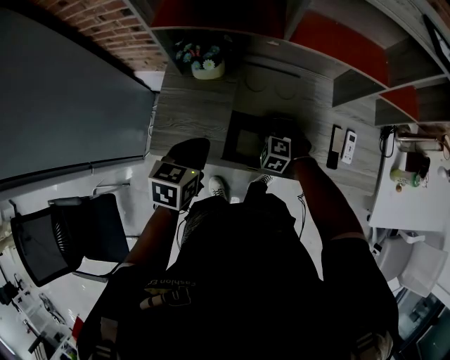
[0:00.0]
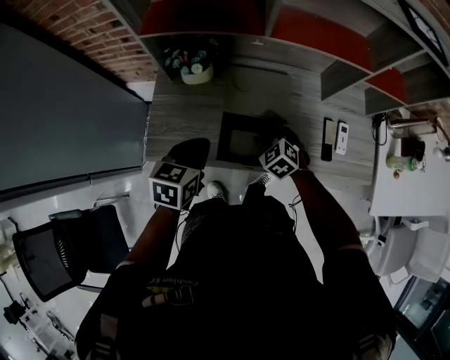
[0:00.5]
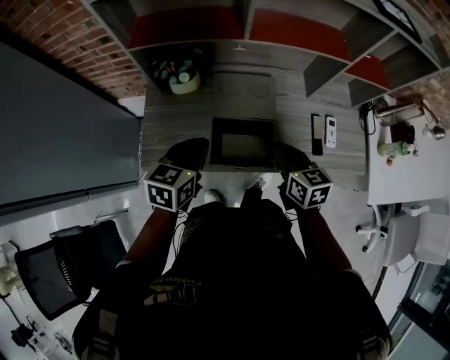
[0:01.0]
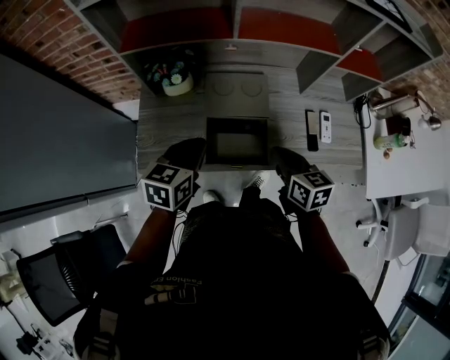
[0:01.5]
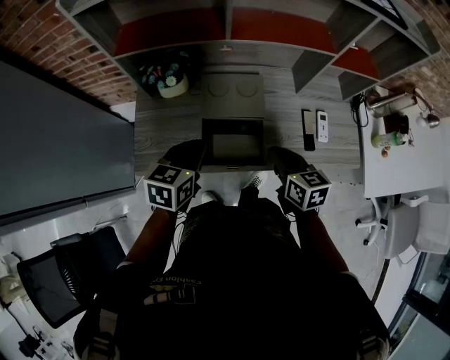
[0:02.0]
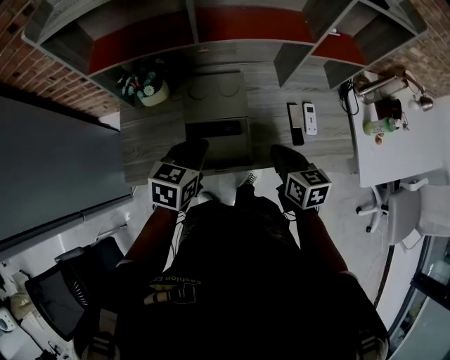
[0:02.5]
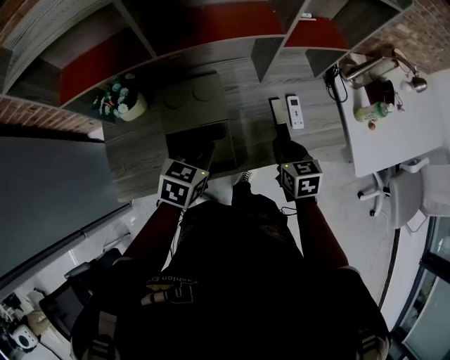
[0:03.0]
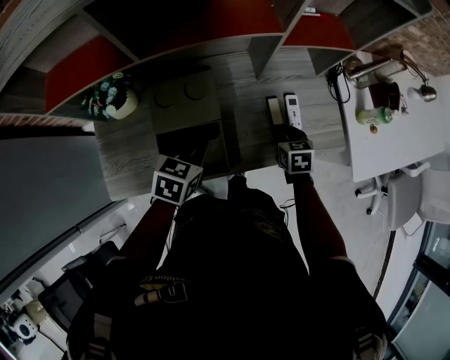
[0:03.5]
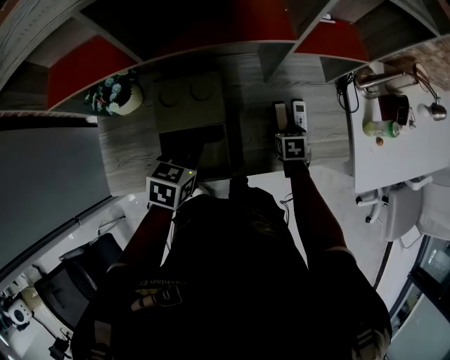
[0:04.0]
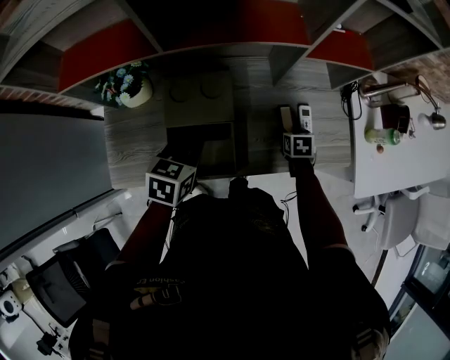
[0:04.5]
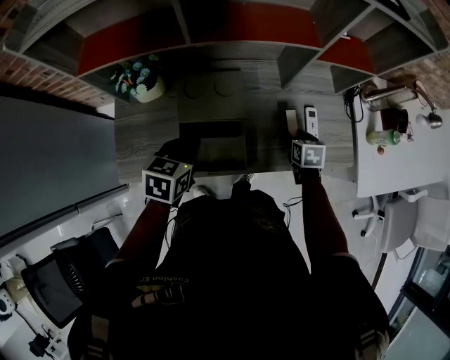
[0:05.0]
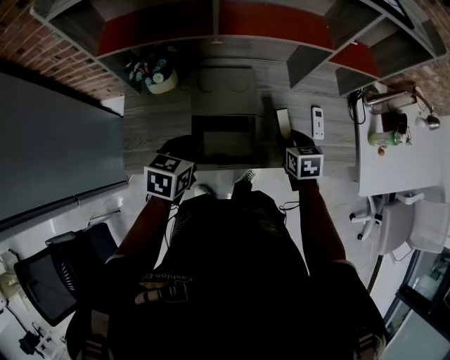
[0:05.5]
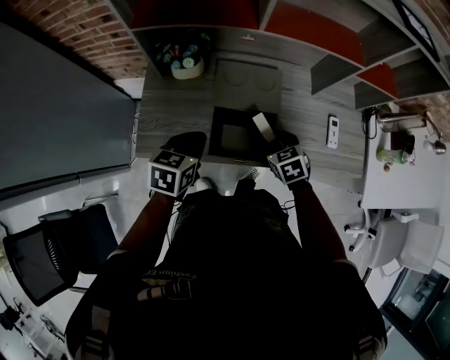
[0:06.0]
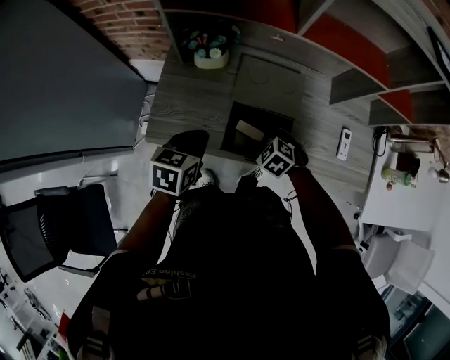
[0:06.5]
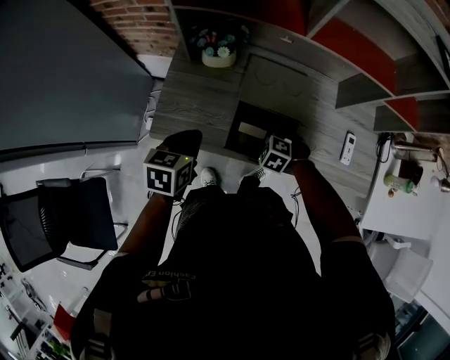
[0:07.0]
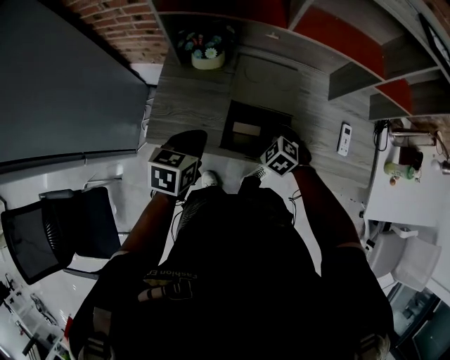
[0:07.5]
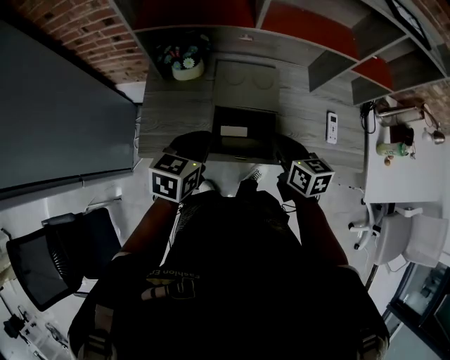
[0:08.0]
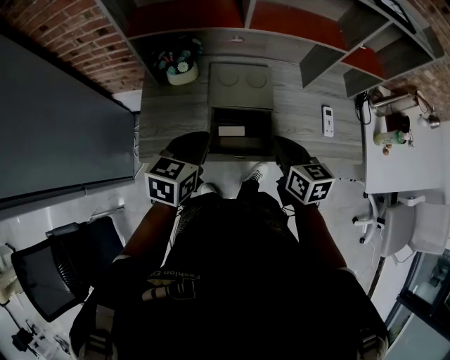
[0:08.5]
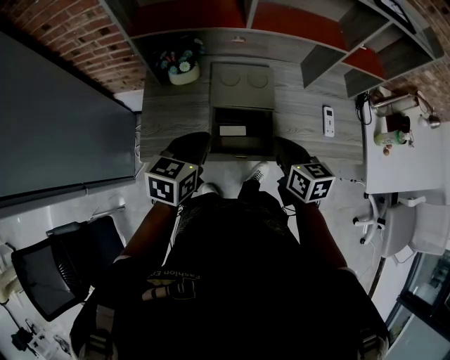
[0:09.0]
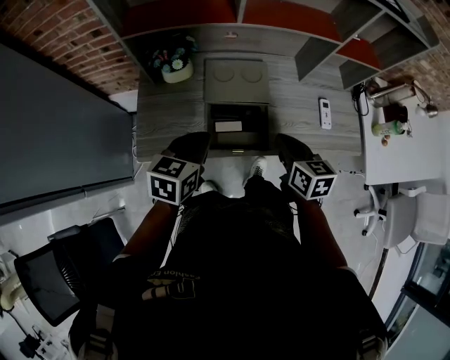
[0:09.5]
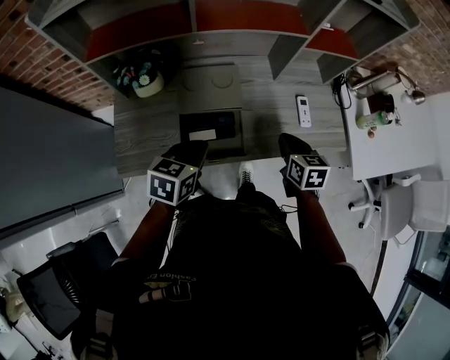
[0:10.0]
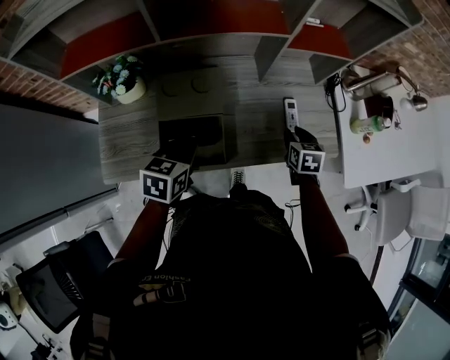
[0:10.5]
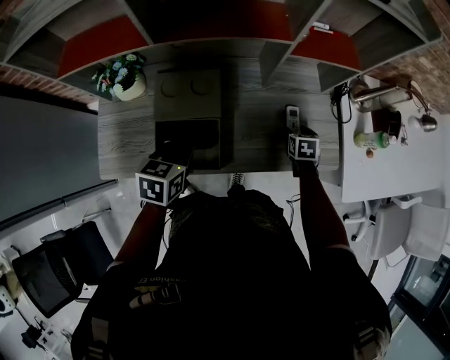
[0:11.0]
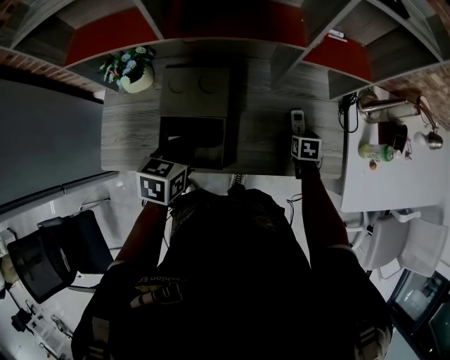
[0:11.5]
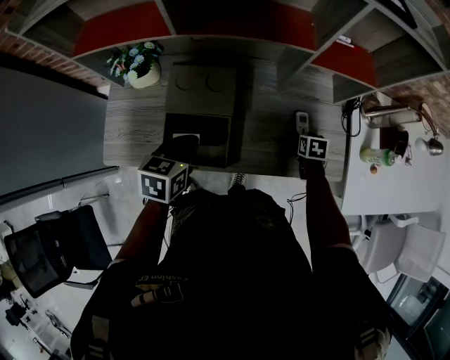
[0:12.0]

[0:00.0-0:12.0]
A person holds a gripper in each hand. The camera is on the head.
0:00.0 to 0:02.0: The left gripper goes some 5 cm to the right, while the right gripper goes about 25 cm upward, to the right and backward, twists about 80 degrees clockwise, seen from behind, and closes its fingers.
0:02.0 to 0:04.0: The right gripper shifts approximately 30 cm downward, to the right and forward, turns by roughly 30 degrees, and opens its fingers; the left gripper goes roughly 15 cm to the right, forward and downward.
0:04.0 to 0:06.0: The right gripper heads to the left, backward and upward, covering roughly 25 cm, and turns by about 40 degrees. Meanwhile the left gripper shifts roughly 20 cm to the left and backward.
0:06.0 to 0:08.0: The right gripper heads upward, covering about 10 cm, turns by about 40 degrees, and closes its fingers. Meanwhile the left gripper reaches roughly 5 cm to the left, then returns.
0:08.0 to 0:10.0: The right gripper is displaced to the right by approximately 15 cm, and turns by roughly 20 degrees. The left gripper heads to the right, covering about 10 cm.
0:10.0 to 0:12.0: The left gripper goes some 5 cm forward. Meanwhile the right gripper goes about 25 cm downward, forward and to the right, turns by some 20 degrees, and opens.

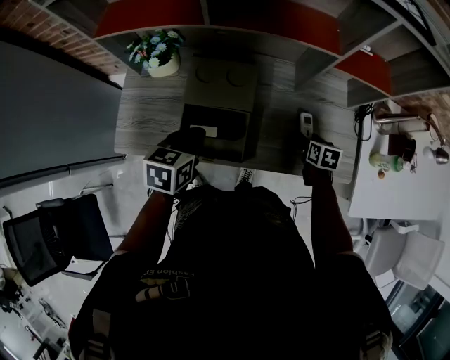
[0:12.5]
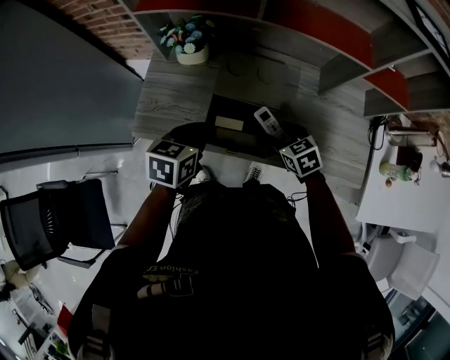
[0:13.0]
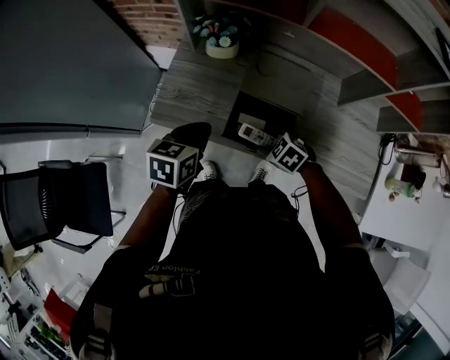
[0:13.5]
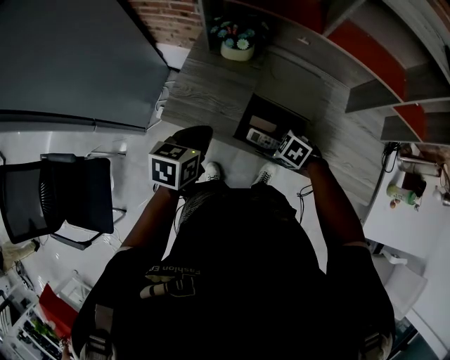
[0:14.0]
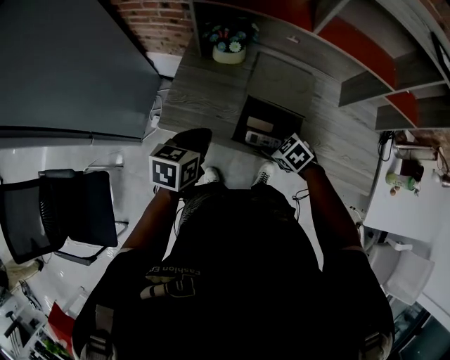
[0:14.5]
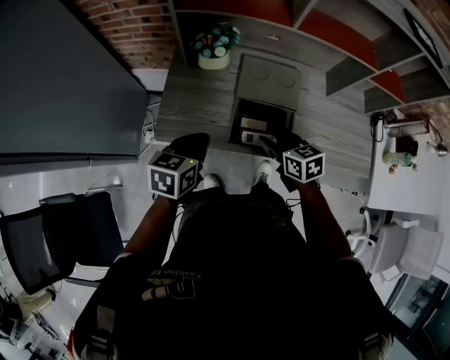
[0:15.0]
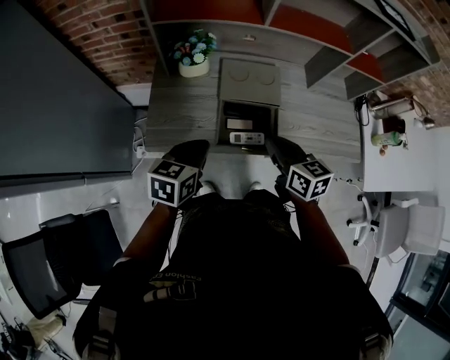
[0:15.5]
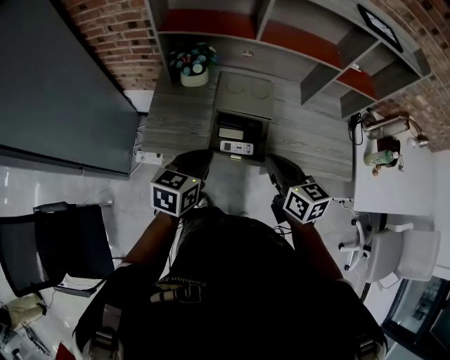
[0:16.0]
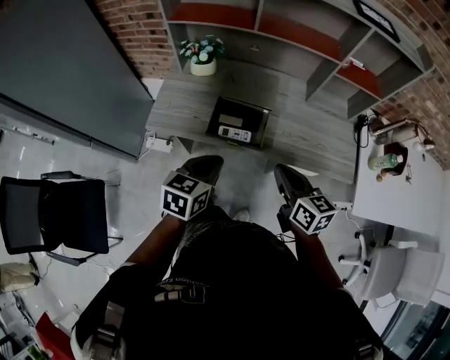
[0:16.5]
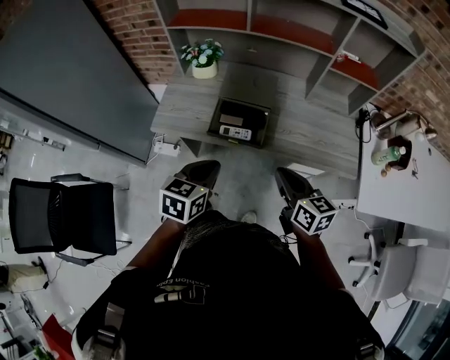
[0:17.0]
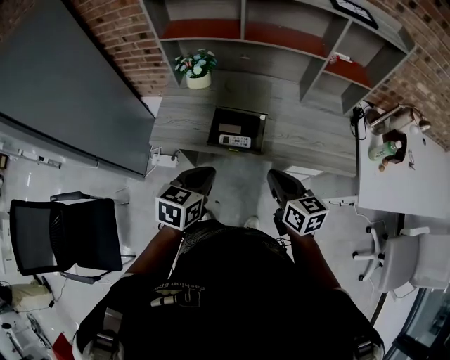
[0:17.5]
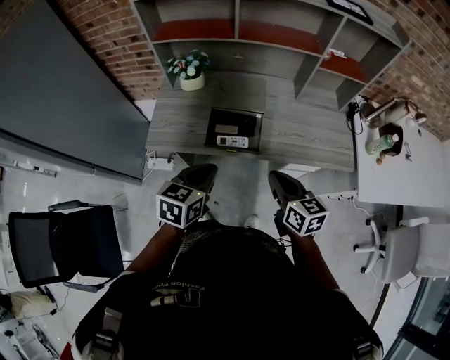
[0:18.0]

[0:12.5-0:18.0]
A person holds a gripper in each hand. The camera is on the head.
0:12.5 to 0:14.5: The left gripper shifts by some 20 cm, while the right gripper moves some 35 cm, and rolls counterclockwise, seen from behind, by about 60 degrees.
0:14.5 to 0:16.0: The left gripper shifts by some 10 cm, while the right gripper goes about 20 cm upward, points its fingers about 40 degrees further upward, and closes up.
0:16.0 to 0:18.0: Both grippers move backward and to the right, roughly 10 cm.

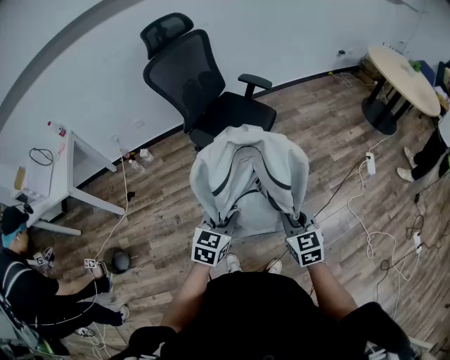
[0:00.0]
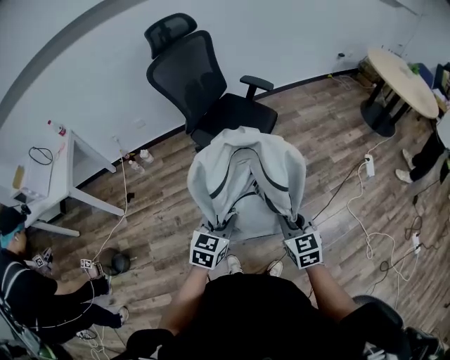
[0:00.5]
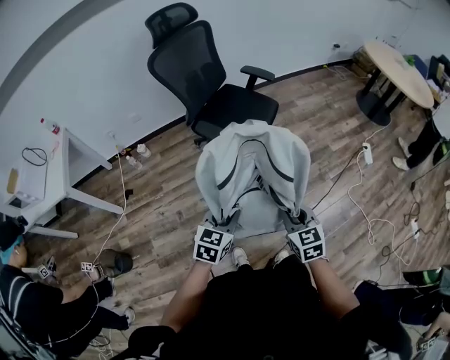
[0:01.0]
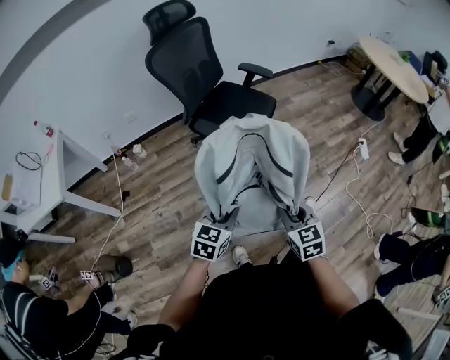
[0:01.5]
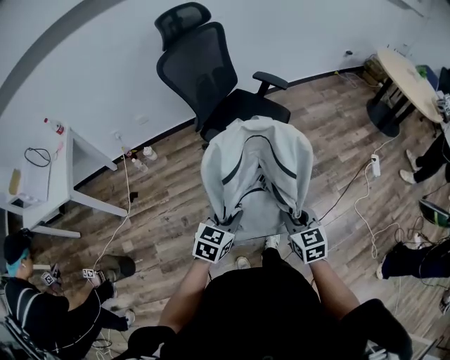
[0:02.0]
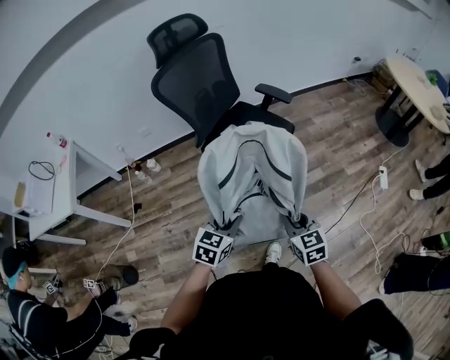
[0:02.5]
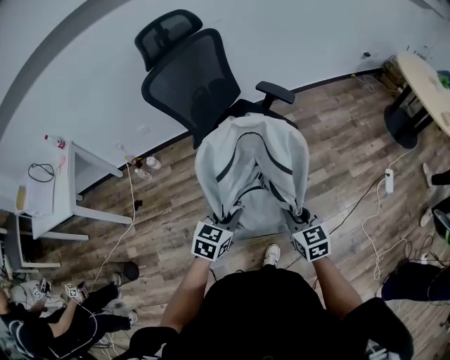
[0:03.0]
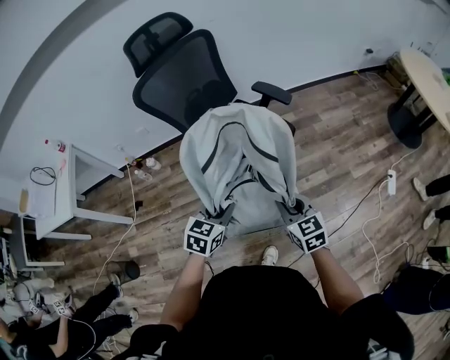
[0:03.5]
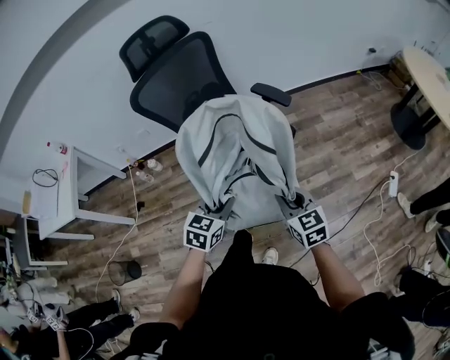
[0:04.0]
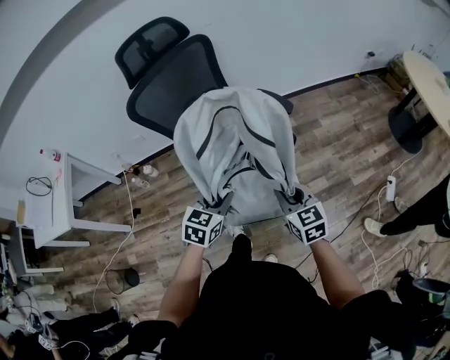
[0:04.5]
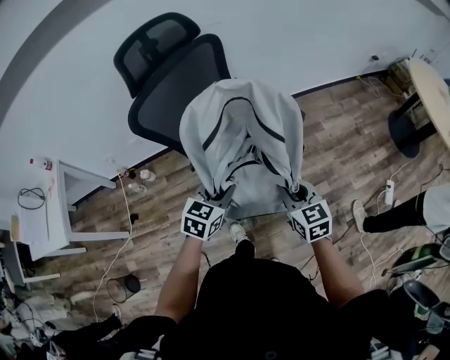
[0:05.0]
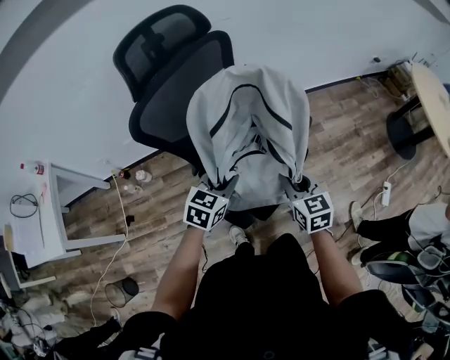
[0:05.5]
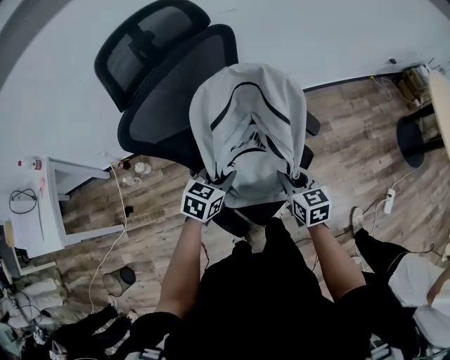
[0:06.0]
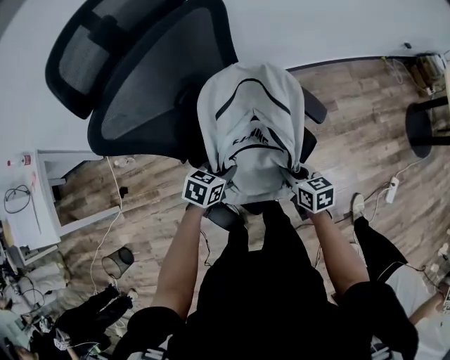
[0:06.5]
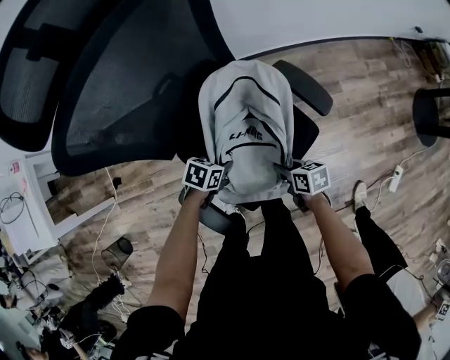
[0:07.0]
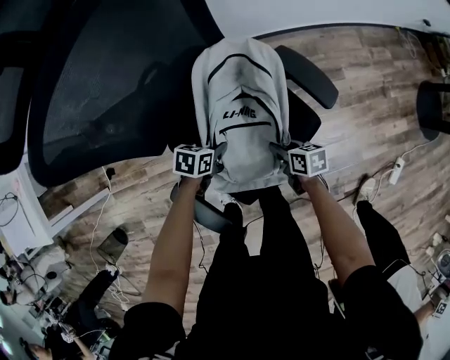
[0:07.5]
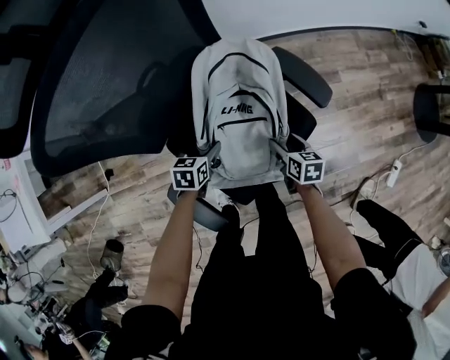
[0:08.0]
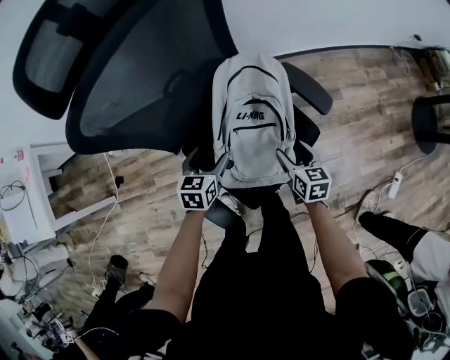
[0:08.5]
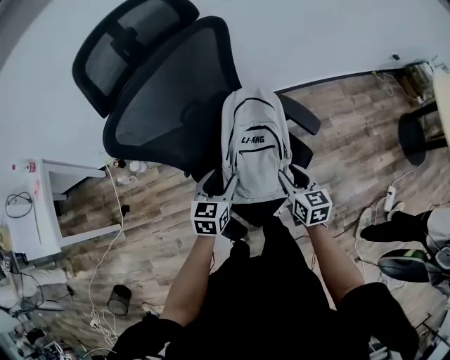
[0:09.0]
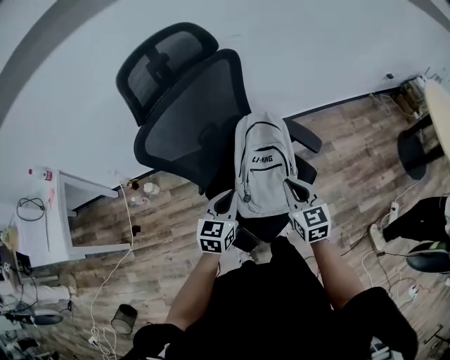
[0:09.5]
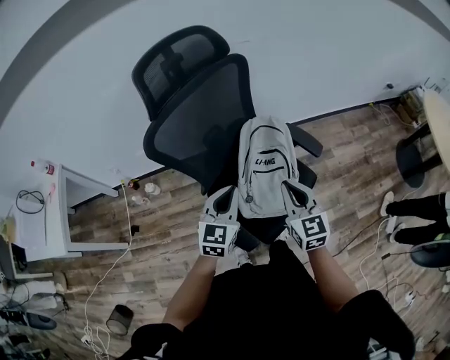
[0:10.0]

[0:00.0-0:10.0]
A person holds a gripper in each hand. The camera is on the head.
0:00.0 to 0:02.0: The grippers both shift to the left by about 10 cm.
0:02.0 to 0:04.0: The grippers both shift forward by roughly 25 cm.
0:04.0 to 0:06.0: The grippers both shift forward by about 30 cm.
0:06.0 to 0:08.0: Both grippers travel together downward, some 25 cm. The right gripper turns by approximately 30 degrees, and opens its fingers. Meanwhile the left gripper turns by about 30 degrees, and opens up.
0:08.0 to 0:10.0: The two grippers go approximately 35 cm upward. The right gripper angles its fingers upward, by some 30 degrees, and closes its fingers, while the left gripper angles its fingers upward, by roughly 40 degrees, and closes its fingers.
